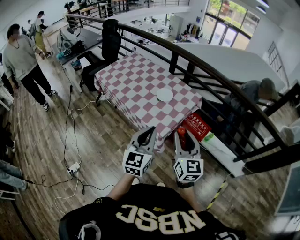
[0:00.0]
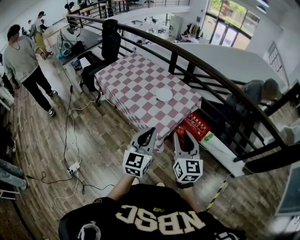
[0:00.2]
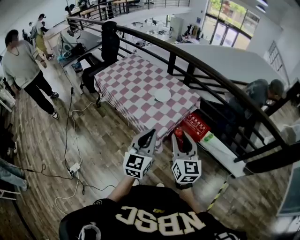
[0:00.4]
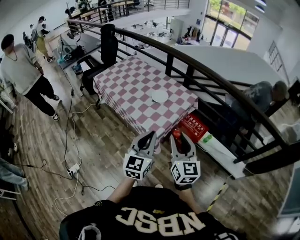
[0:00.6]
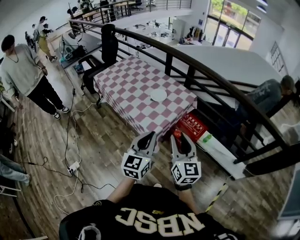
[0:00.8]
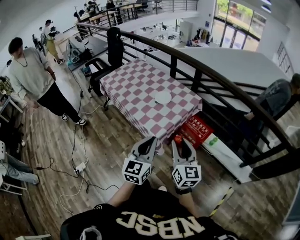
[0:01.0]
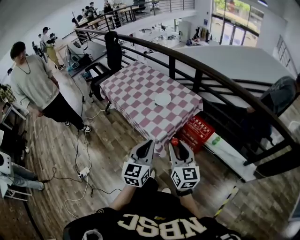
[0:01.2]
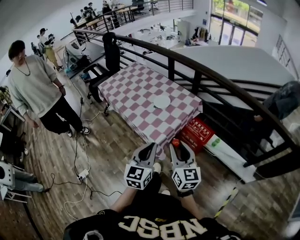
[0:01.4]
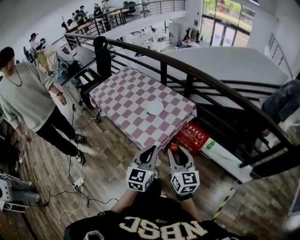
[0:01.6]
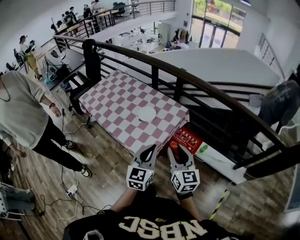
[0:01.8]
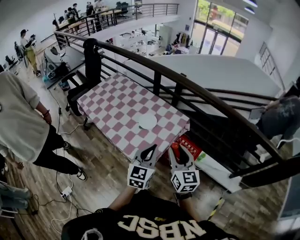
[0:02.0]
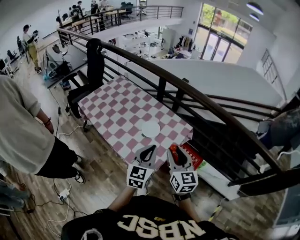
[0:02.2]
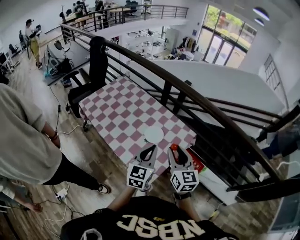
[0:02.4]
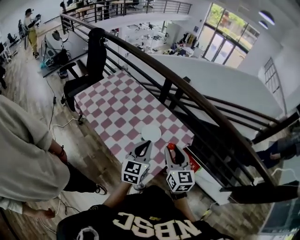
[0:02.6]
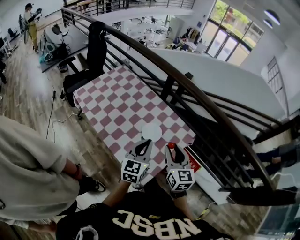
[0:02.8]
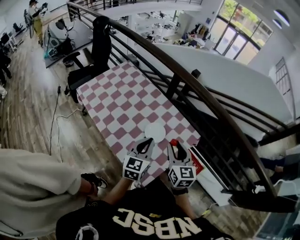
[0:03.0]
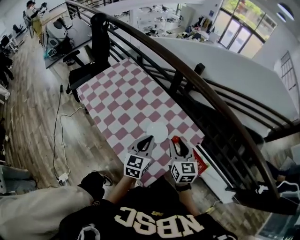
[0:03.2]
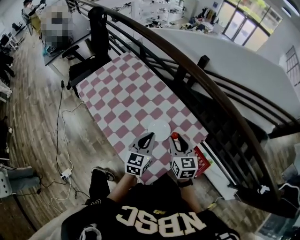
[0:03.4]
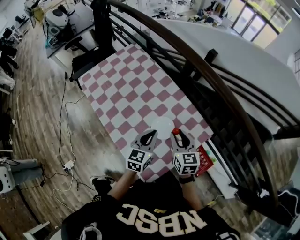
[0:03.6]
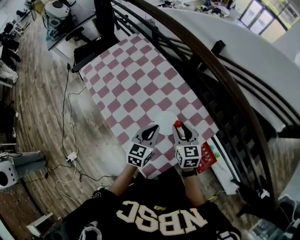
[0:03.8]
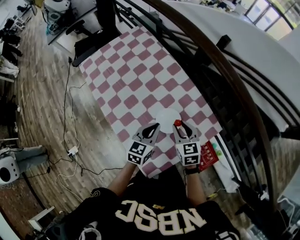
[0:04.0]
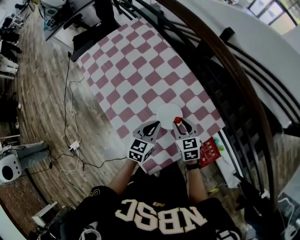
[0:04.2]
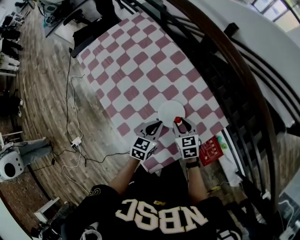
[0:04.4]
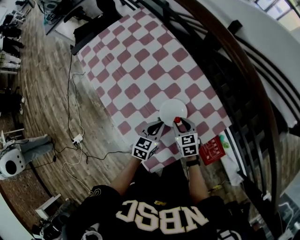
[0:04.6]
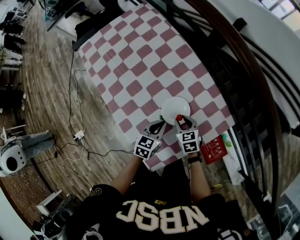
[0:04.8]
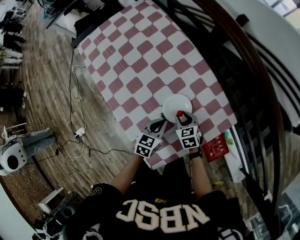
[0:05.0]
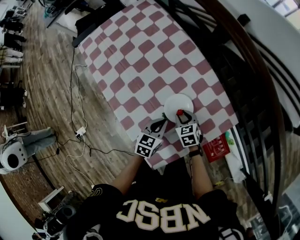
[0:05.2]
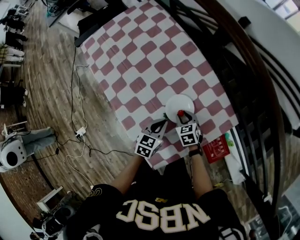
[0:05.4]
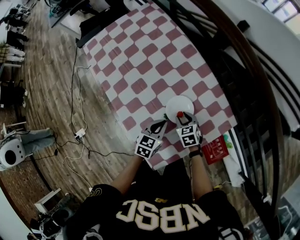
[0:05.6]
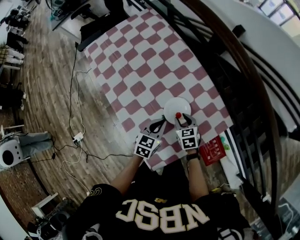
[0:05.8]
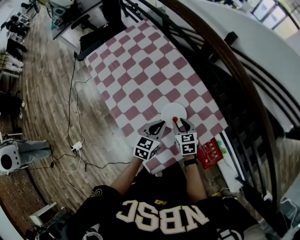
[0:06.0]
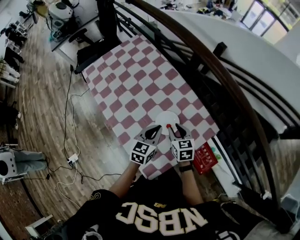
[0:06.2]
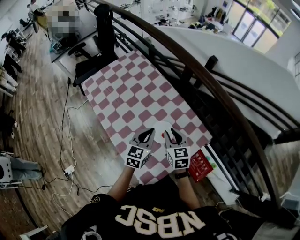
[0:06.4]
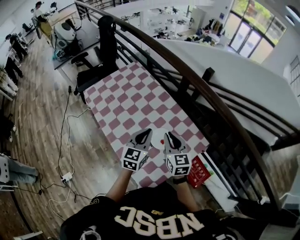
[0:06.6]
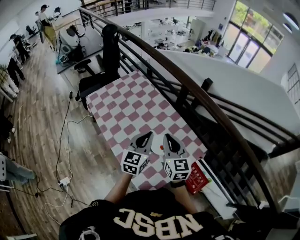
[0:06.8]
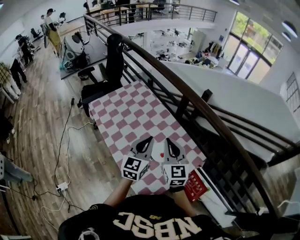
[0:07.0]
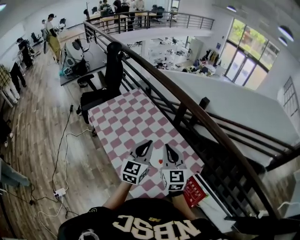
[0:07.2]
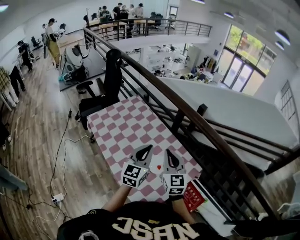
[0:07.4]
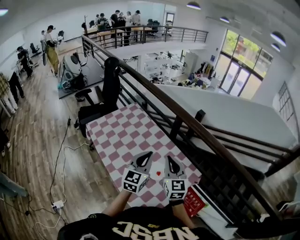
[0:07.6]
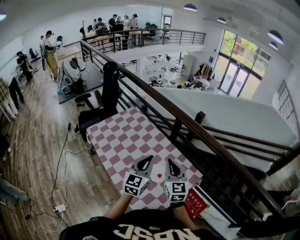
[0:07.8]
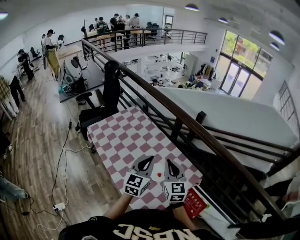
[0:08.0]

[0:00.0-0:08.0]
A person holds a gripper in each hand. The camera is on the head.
0:00.0 to 0:01.6: The two grippers go about 10 cm to the right and downward.
0:01.6 to 0:03.2: Both grippers travel together forward, about 40 cm.
0:03.2 to 0:04.8: The two grippers go about 25 cm downward. The left gripper swivels roughly 30 degrees, while the right gripper tilts its fingers roughly 30 degrees downward.
0:04.8 to 0:06.4: Both grippers travel together upward, approximately 20 cm. The left gripper turns by approximately 20 degrees. Meanwhile the right gripper rotates approximately 20 degrees.
0:06.4 to 0:08.0: The grippers both shift upward by approximately 15 cm. The right gripper changes its angle by some 30 degrees, and closes up.

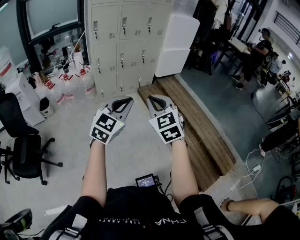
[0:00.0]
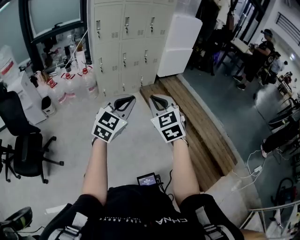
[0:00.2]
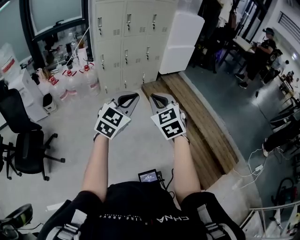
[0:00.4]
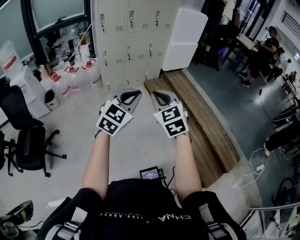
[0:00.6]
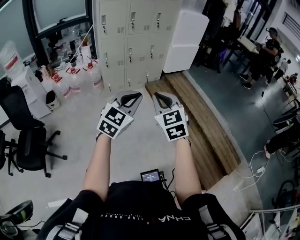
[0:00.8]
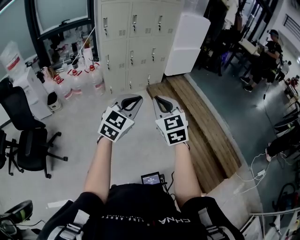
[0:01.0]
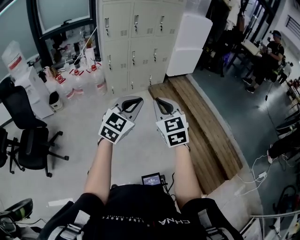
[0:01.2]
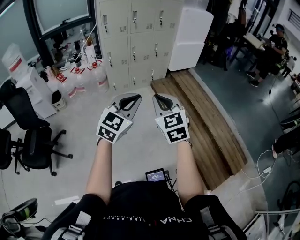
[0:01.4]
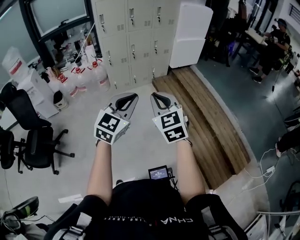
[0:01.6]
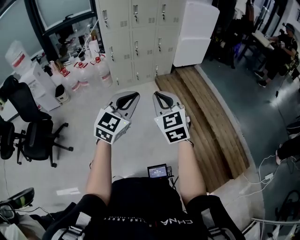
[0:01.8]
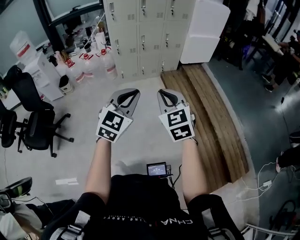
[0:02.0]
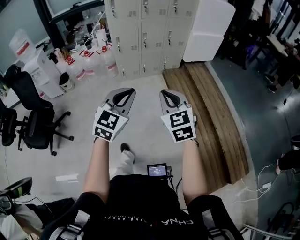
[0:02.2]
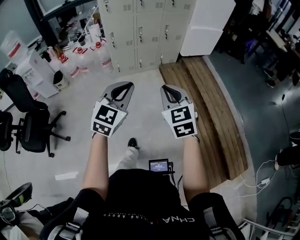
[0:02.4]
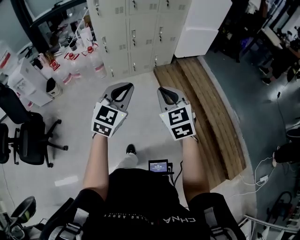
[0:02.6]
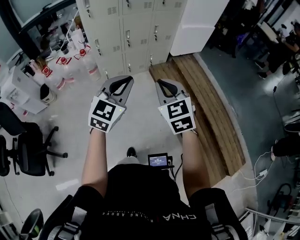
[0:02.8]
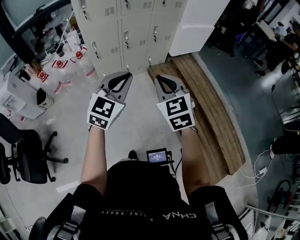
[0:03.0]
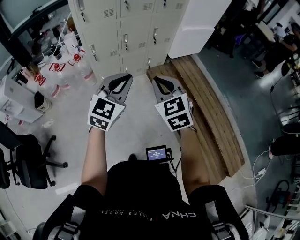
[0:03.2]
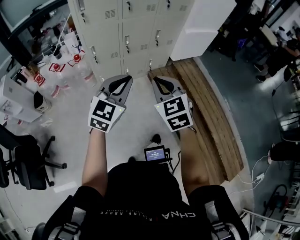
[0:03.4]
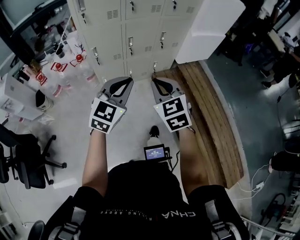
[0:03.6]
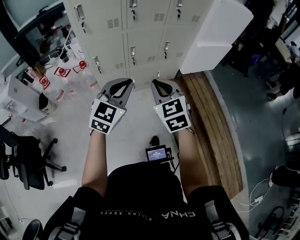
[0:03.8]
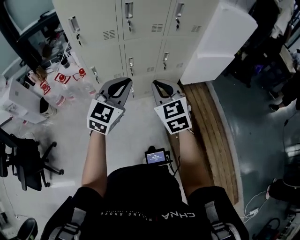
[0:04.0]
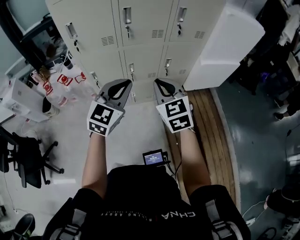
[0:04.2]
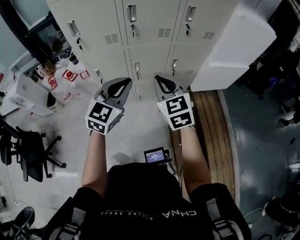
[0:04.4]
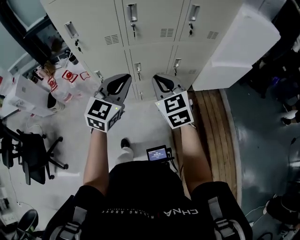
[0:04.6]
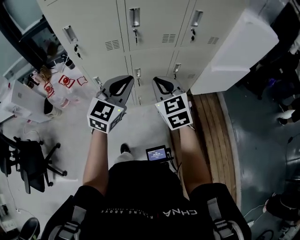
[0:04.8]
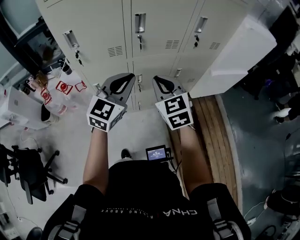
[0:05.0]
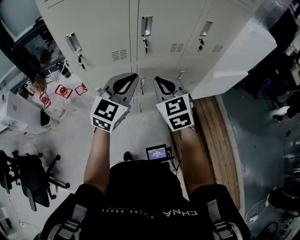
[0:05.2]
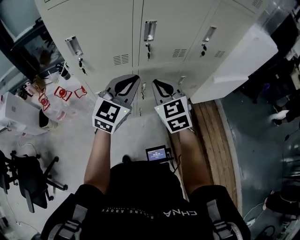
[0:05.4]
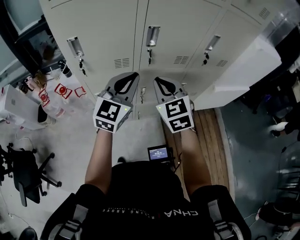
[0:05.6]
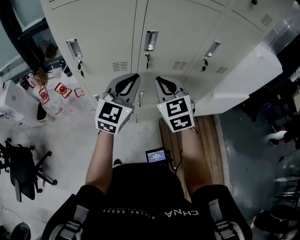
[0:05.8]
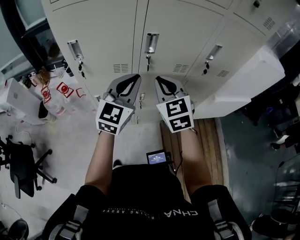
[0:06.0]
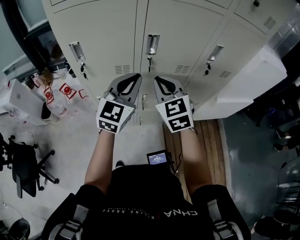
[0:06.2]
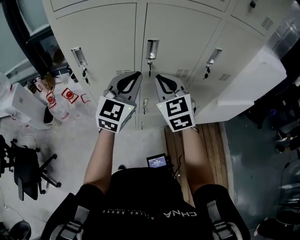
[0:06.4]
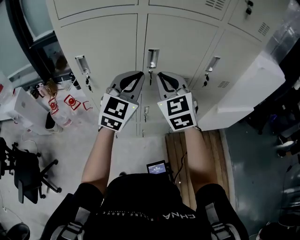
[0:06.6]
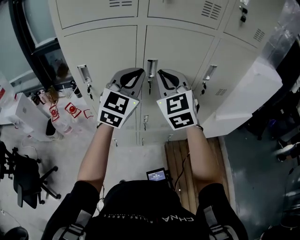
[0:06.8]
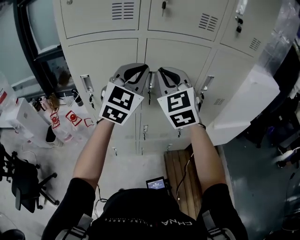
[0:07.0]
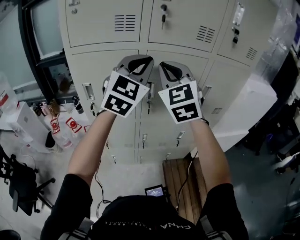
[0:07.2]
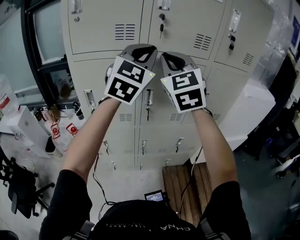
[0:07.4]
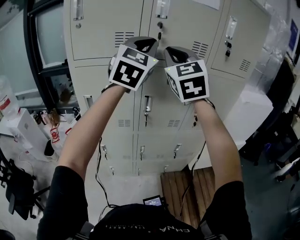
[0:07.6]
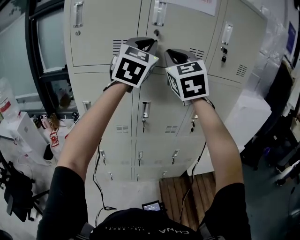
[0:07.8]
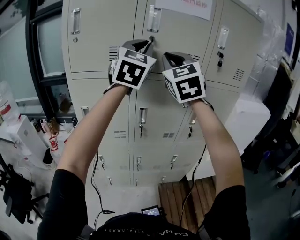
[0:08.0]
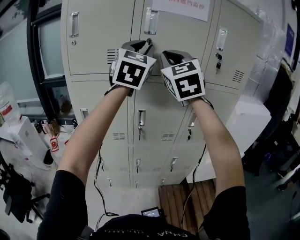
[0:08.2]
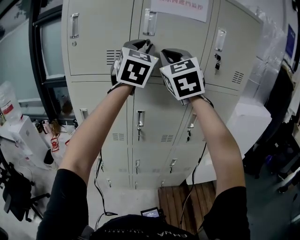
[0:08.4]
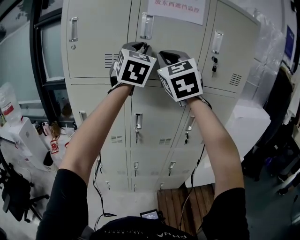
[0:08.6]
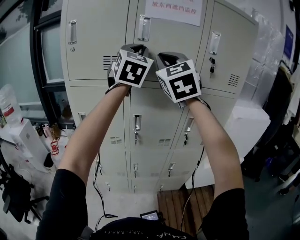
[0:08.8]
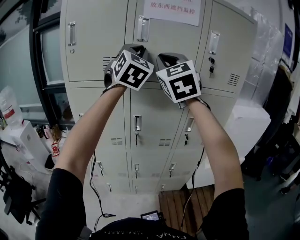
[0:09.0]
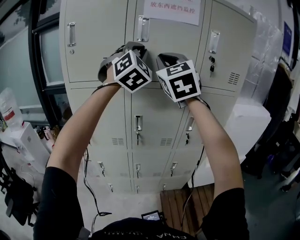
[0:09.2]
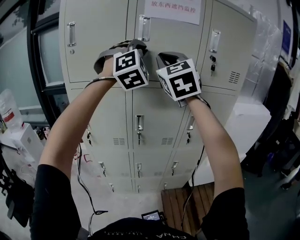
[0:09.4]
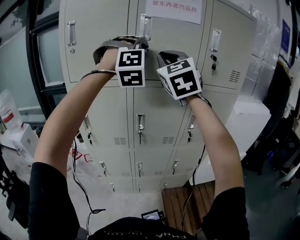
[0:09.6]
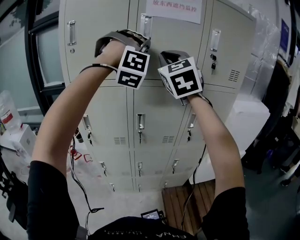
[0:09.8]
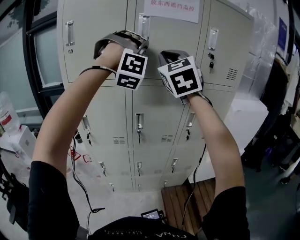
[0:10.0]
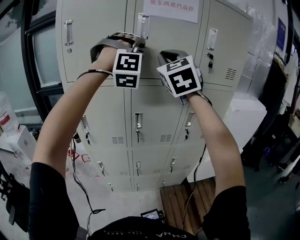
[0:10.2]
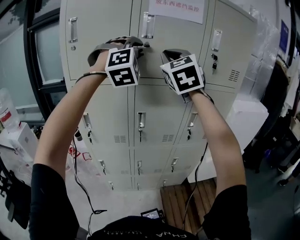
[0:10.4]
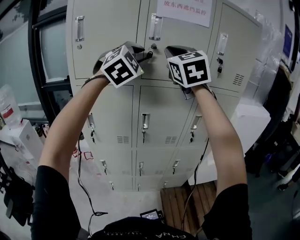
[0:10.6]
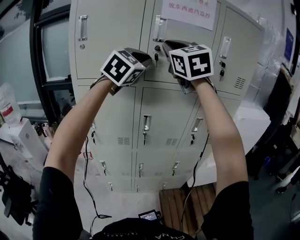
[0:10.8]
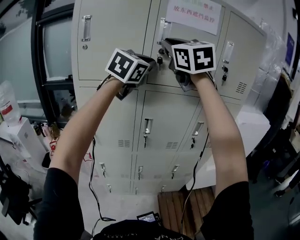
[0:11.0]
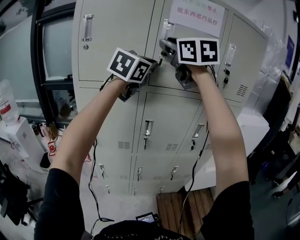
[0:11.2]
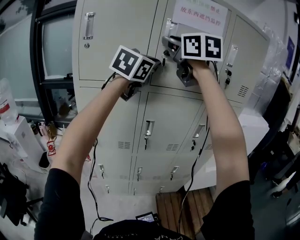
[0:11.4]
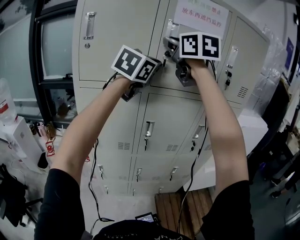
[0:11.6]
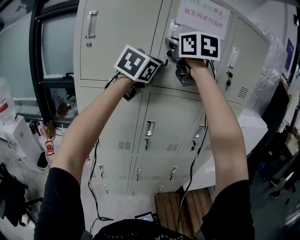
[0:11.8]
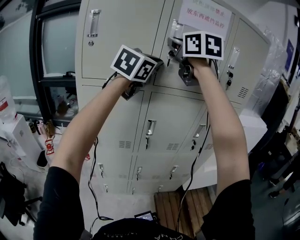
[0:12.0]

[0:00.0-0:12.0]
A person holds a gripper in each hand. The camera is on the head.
0:00.0 to 0:01.6: The grippers make only small movements.
0:01.6 to 0:03.0: The two grippers go roughly 40 cm forward.
0:03.0 to 0:04.4: The two grippers travel together, forward, about 40 cm.
0:04.4 to 0:06.0: The grippers both shift forward and to the left by about 25 cm.
0:06.0 to 0:07.6: The grippers both shift upward by roughly 35 cm. The left gripper changes its angle by roughly 20 degrees. Meanwhile the right gripper turns by approximately 30 degrees.
0:07.6 to 0:09.0: Both grippers move upward, approximately 5 cm.
0:09.0 to 0:10.4: The left gripper twists approximately 40 degrees clockwise, seen from behind, and opens up.
0:10.4 to 0:12.0: The right gripper is displaced to the left and upward by about 10 cm, and swivels about 30 degrees. Meanwhile the left gripper rotates around the line of its fingers by some 60 degrees, counterclockwise from behind, and closes its fingers.

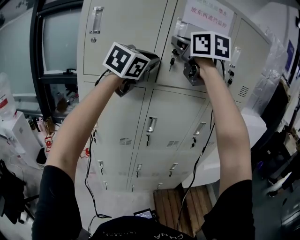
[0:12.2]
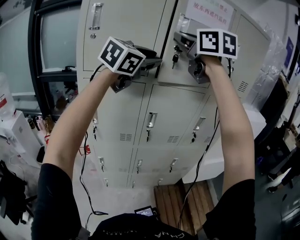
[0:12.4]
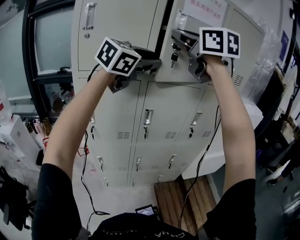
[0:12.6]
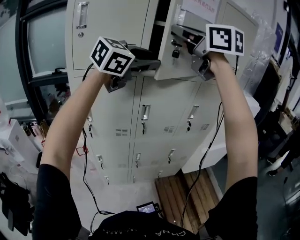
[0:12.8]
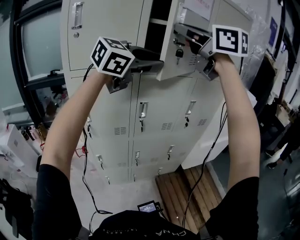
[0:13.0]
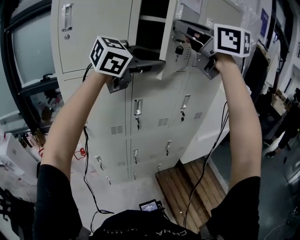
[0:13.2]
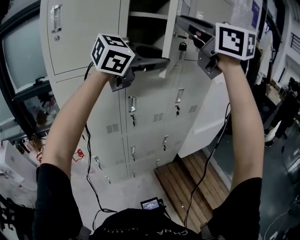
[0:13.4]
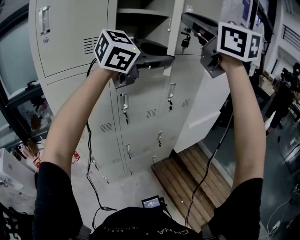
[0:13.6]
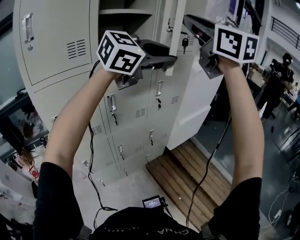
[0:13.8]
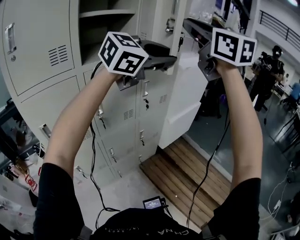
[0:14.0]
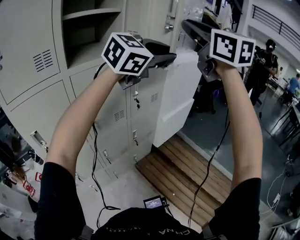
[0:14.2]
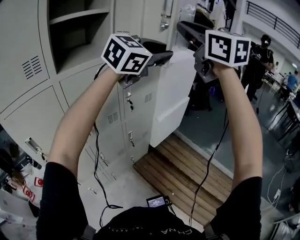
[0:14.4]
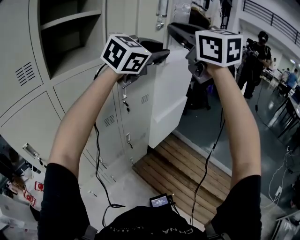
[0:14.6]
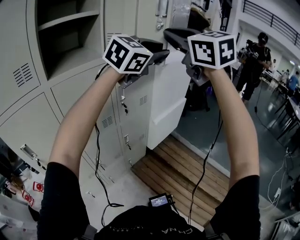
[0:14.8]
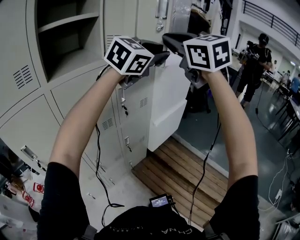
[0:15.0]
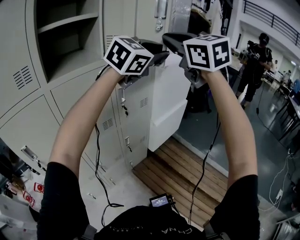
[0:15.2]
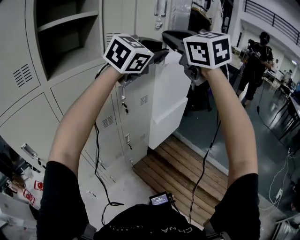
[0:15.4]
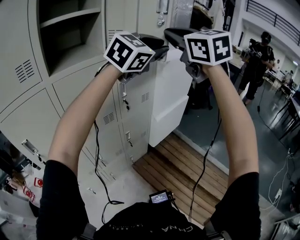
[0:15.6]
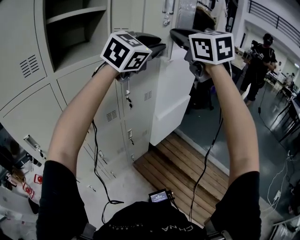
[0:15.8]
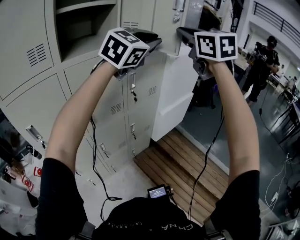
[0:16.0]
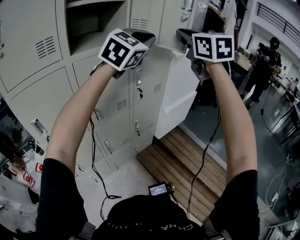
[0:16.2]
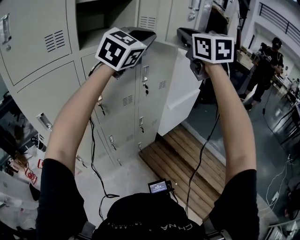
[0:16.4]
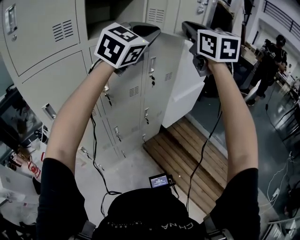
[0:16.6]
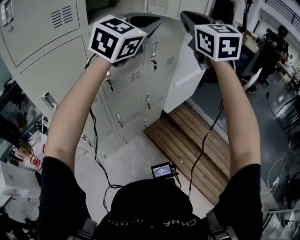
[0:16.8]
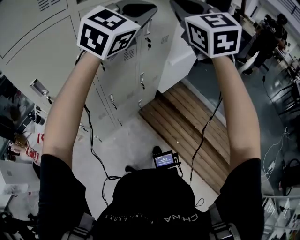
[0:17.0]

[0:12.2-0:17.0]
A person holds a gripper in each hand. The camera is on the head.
0:12.2 to 0:13.8: The right gripper shifts by roughly 25 cm, and turns by some 20 degrees, while the left gripper changes place by approximately 30 cm, swivels approximately 50 degrees, and opens up.
0:13.8 to 0:15.4: The left gripper goes about 20 cm forward and to the right. Meanwhile the right gripper shifts approximately 20 cm forward, to the right and downward.
0:15.4 to 0:17.0: Both grippers move to the left, backward and downward, approximately 25 cm.
